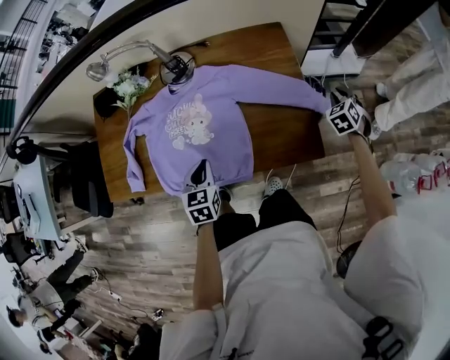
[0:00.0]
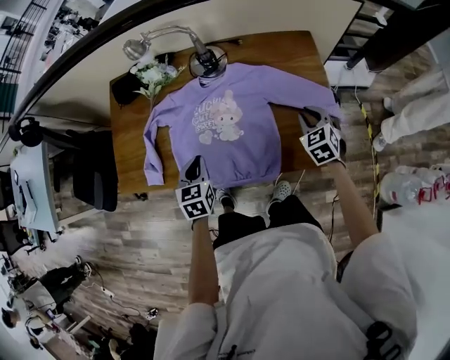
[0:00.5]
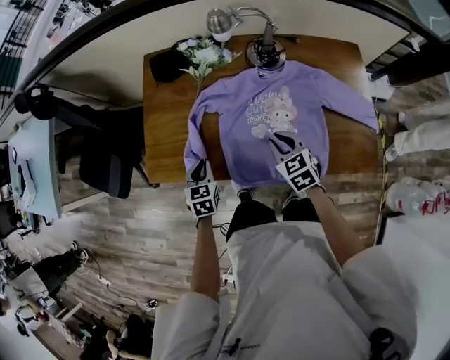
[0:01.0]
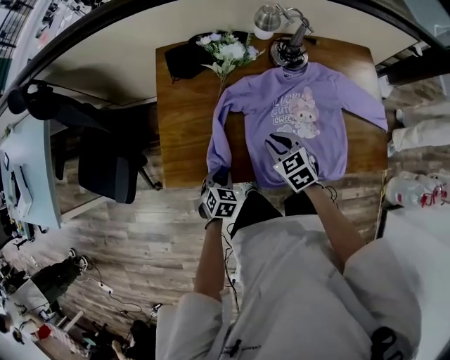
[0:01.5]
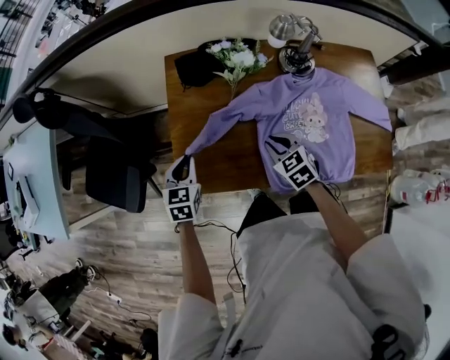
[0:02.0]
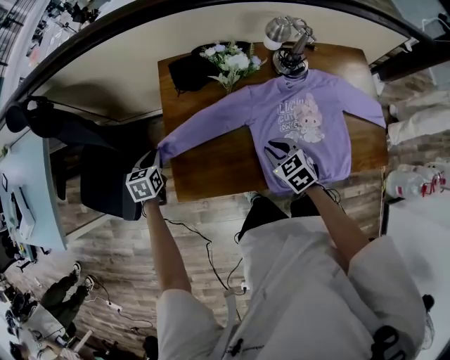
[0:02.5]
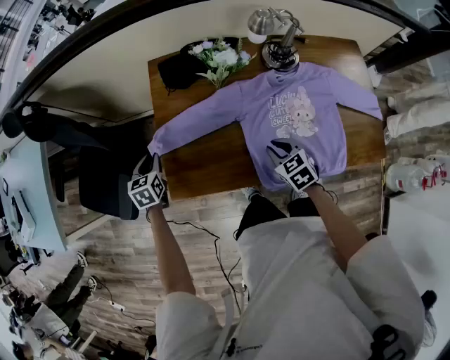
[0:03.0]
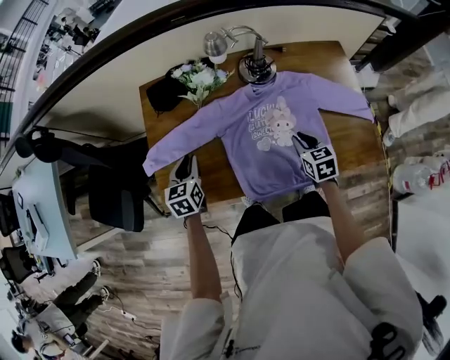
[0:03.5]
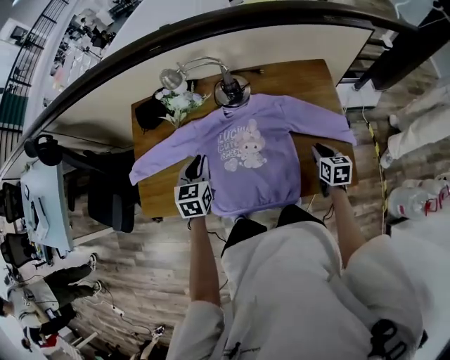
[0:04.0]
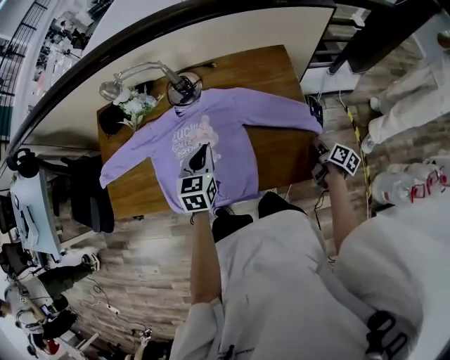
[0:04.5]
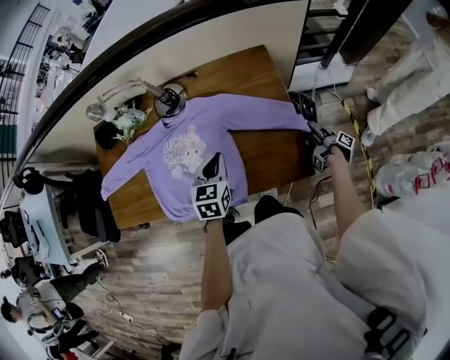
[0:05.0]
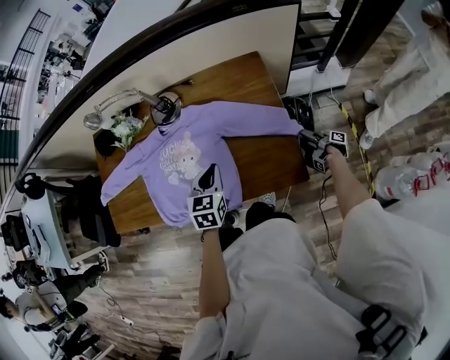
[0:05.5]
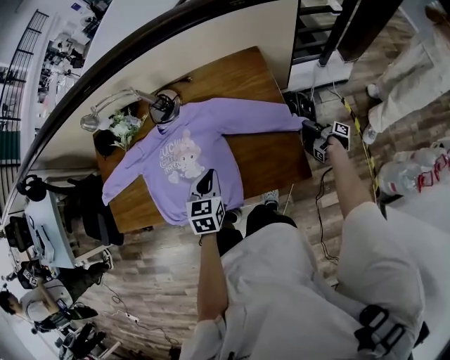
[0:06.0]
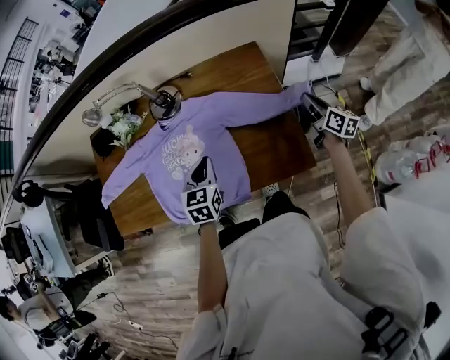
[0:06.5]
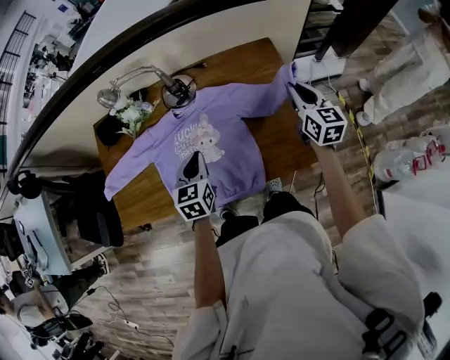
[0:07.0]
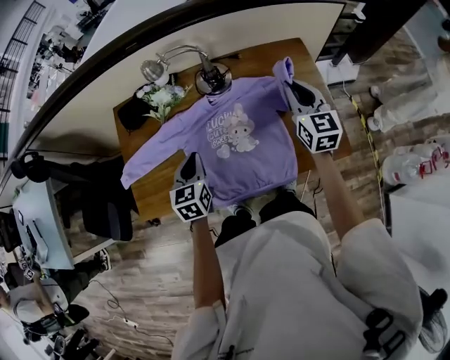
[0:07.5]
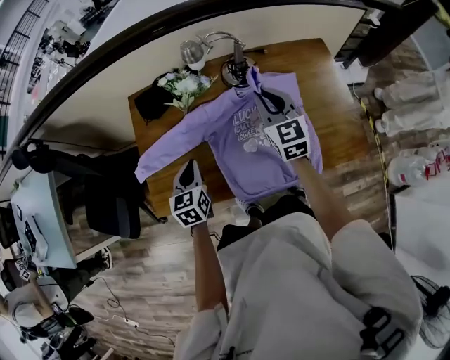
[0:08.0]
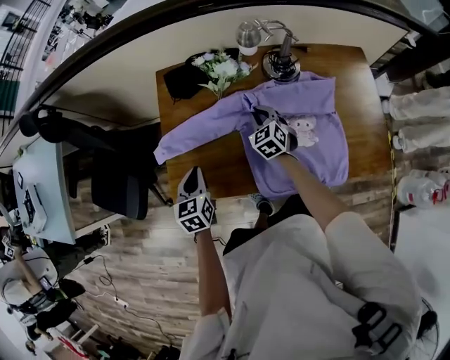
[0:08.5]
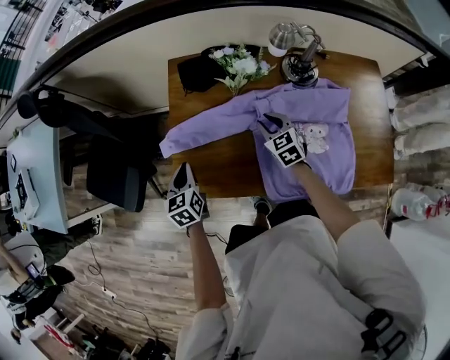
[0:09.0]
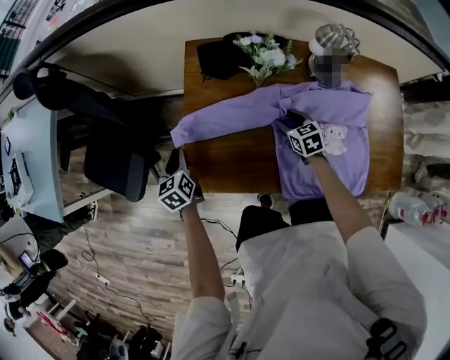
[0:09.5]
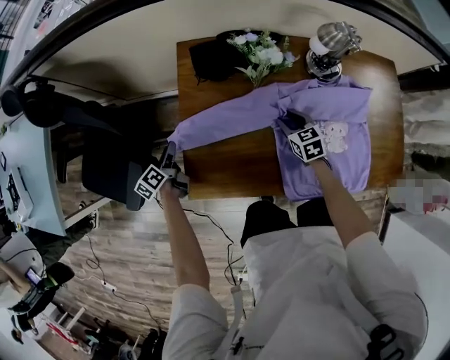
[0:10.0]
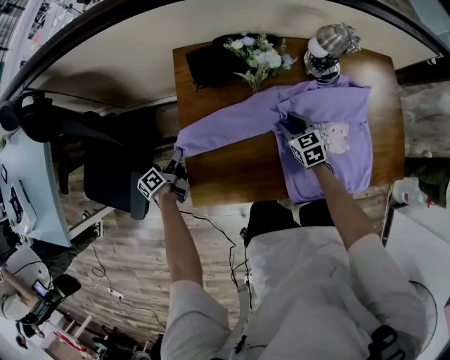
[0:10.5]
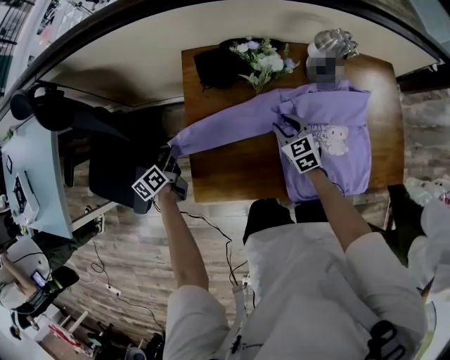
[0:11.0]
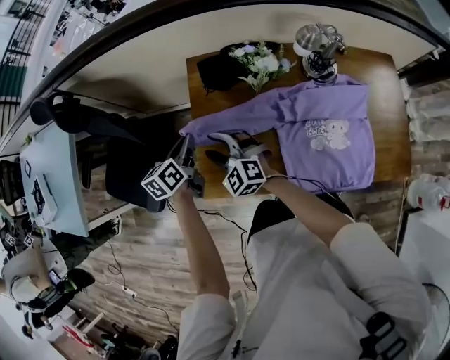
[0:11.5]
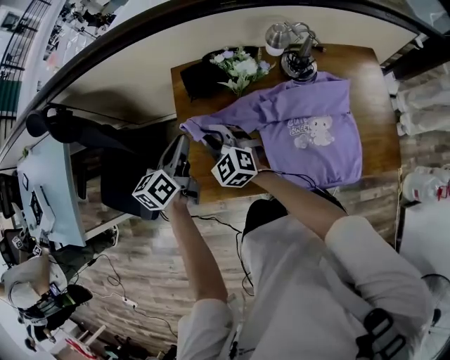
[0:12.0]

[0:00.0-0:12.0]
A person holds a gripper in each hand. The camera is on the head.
0:00.0 to 0:02.0: Both grippers are carried approximately 60 cm. The right gripper turns by roughly 40 degrees.
0:02.0 to 0:04.0: Both grippers move to the right, approximately 40 cm. The right gripper rotates approximately 40 degrees.
0:04.0 to 0:06.0: The right gripper goes about 30 cm to the right and downward, rotates around the line of its fingers by approximately 90 degrees, clockwise from behind, and opens, then closes again, while the left gripper moves to the right, roughly 30 cm.
0:06.0 to 0:08.0: The pair of grippers is taken to the left, some 50 cm. The right gripper heads upward, covering roughly 30 cm, and rotates around the line of its fingers by some 120 degrees, counterclockwise from behind.
0:08.0 to 0:10.0: The left gripper is displaced to the left and downward by some 35 cm, twists about 50 degrees counterclockwise, seen from behind, and opens its fingers. The right gripper is displaced downward and to the left by some 30 cm, angles its fingers downward, by roughly 30 degrees, and opens up.
0:10.0 to 0:12.0: The left gripper travels upward and to the right by about 30 cm, rotates some 30 degrees, and closes its fingers. The right gripper is displaced to the left and upward by roughly 30 cm, swivels approximately 40 degrees, and closes its fingers.

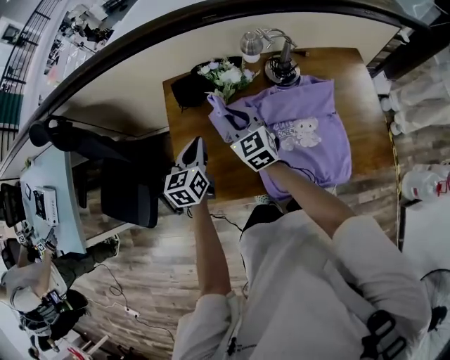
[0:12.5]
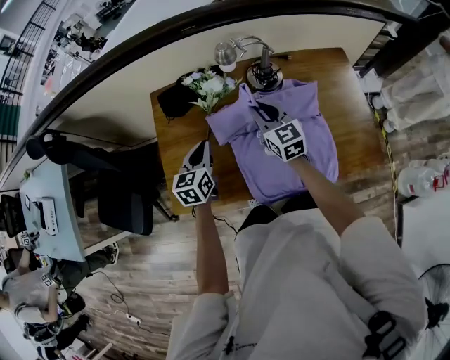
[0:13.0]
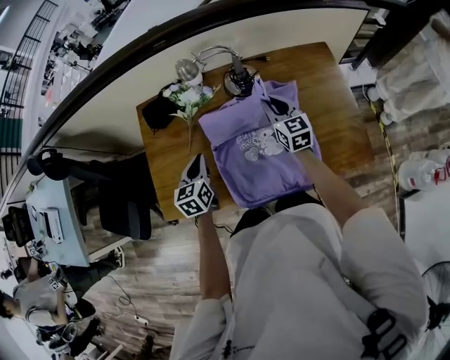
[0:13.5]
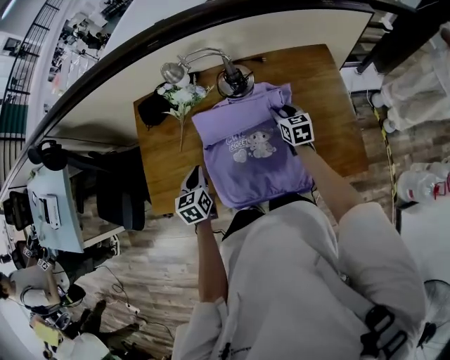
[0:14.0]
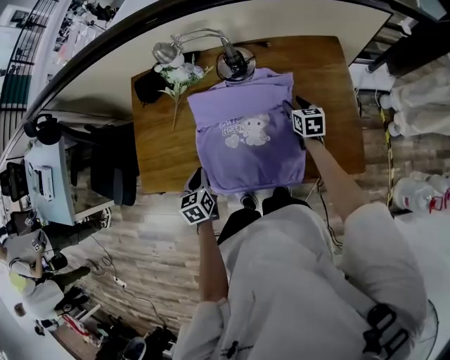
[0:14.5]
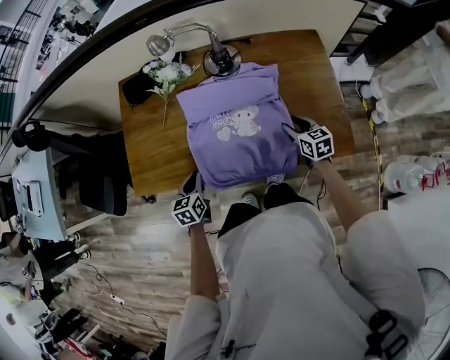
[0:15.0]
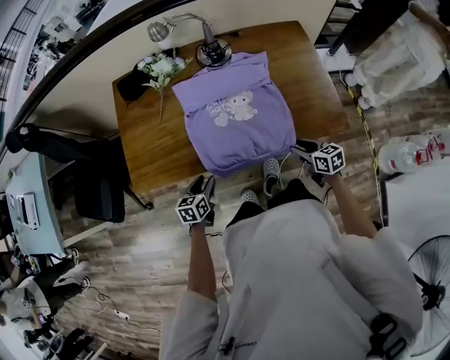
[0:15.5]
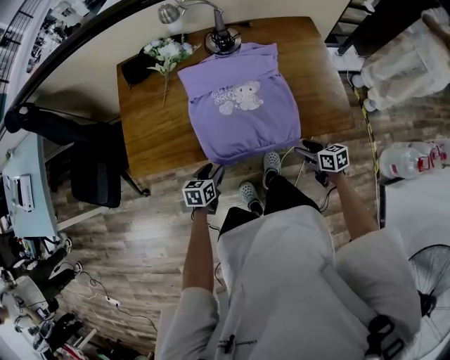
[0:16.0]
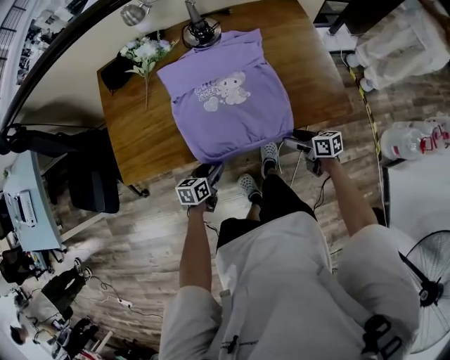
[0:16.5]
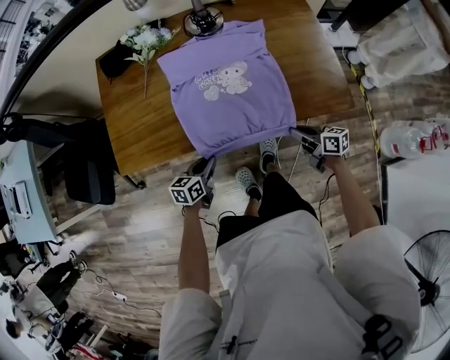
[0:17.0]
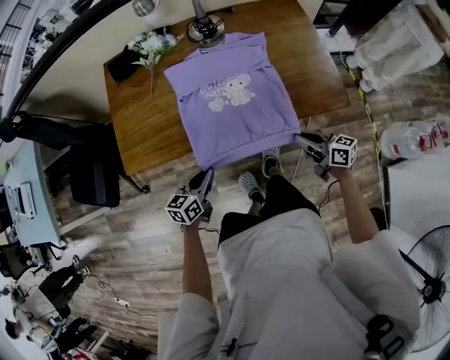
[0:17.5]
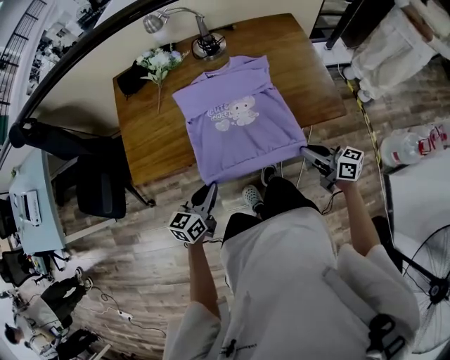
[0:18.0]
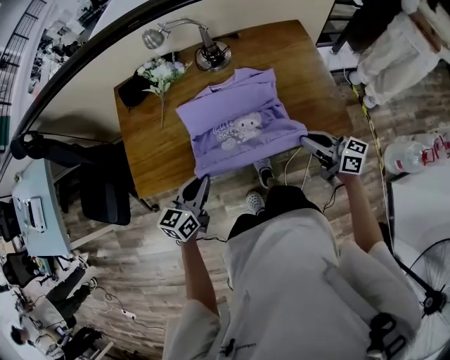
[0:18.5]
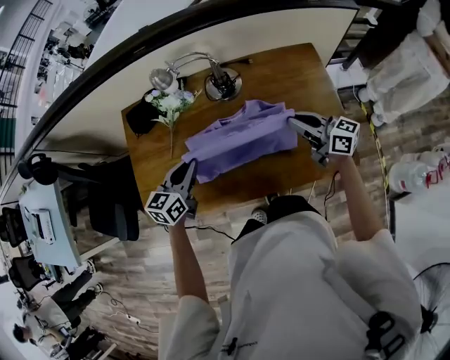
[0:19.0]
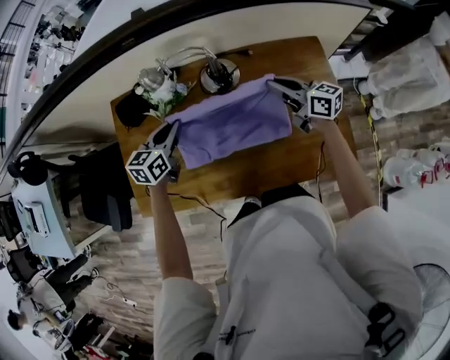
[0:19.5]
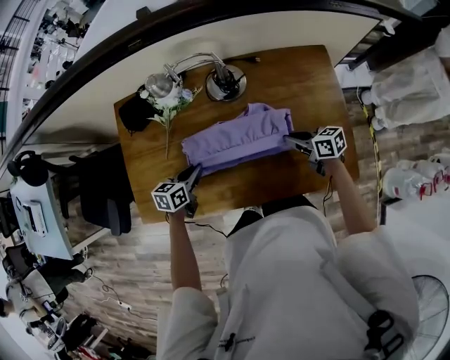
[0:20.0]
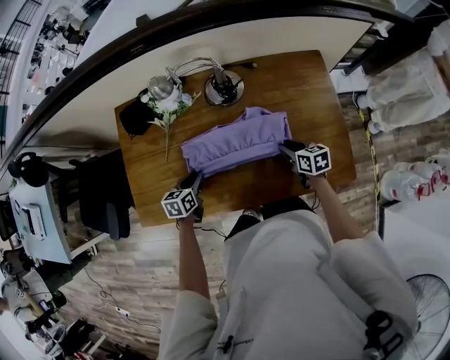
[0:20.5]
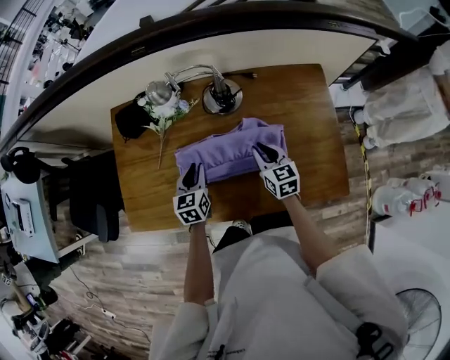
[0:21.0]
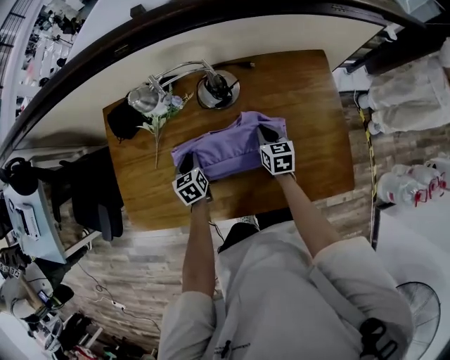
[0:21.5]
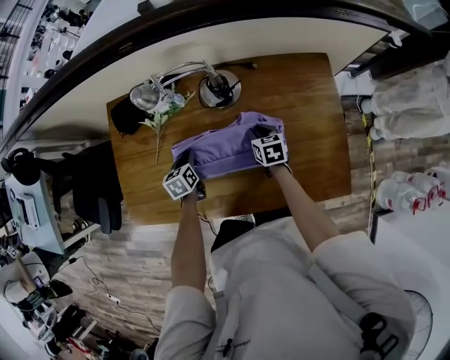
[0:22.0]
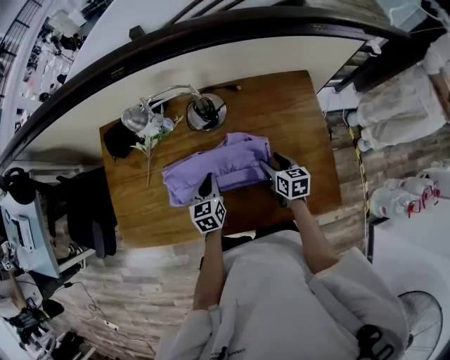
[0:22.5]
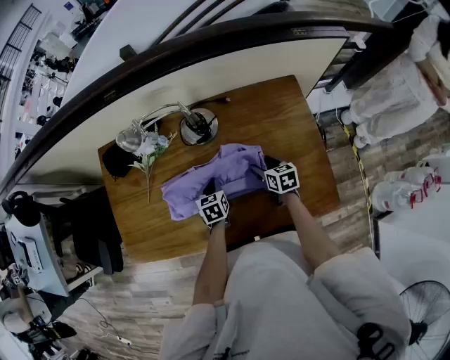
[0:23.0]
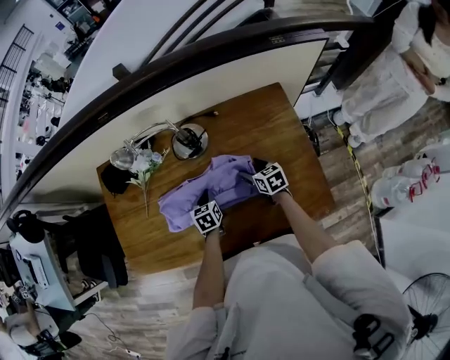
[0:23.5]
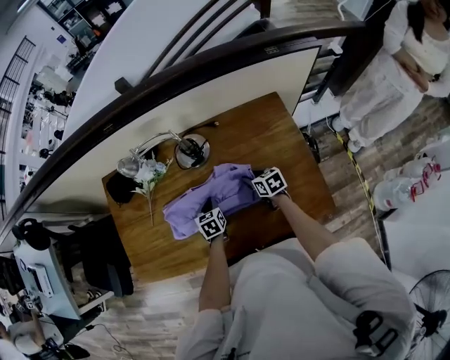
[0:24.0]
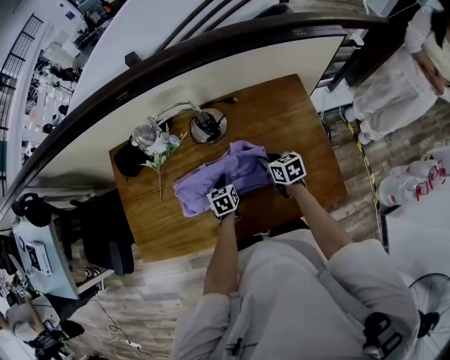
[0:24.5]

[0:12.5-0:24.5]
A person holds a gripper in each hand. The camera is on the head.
0:12.5 to 0:14.5: The left gripper moves to the right, backward and downward, some 25 cm, and changes its angle by about 30 degrees. Meanwhile the right gripper heads to the right, covering roughly 40 cm, turns by approximately 40 degrees, and opens up.
0:14.5 to 0:16.5: The left gripper moves downward and backward, some 20 cm, turns by about 40 degrees, and opens. The right gripper shifts roughly 30 cm backward, and swivels some 30 degrees.
0:16.5 to 0:18.5: The two grippers go roughly 25 cm upward. The left gripper turns by roughly 30 degrees, and closes; the right gripper swivels about 30 degrees, and closes up.
0:18.5 to 0:20.5: The two grippers go about 25 cm forward and downward. The right gripper tilts its fingers roughly 40 degrees downward; the left gripper changes its angle by approximately 30 degrees.
0:20.5 to 0:22.5: The right gripper opens its fingers. Meanwhile the left gripper heads to the right, covering about 15 cm.
0:22.5 to 0:24.5: The right gripper closes. The left gripper shifts some 5 cm downward.

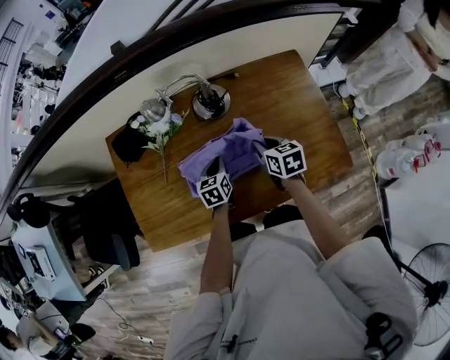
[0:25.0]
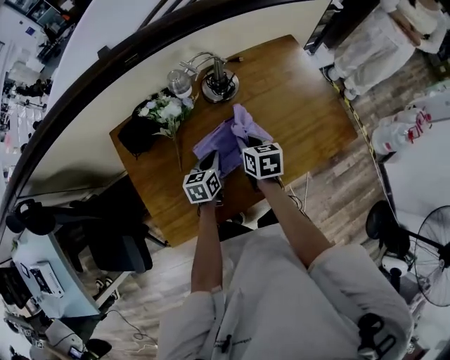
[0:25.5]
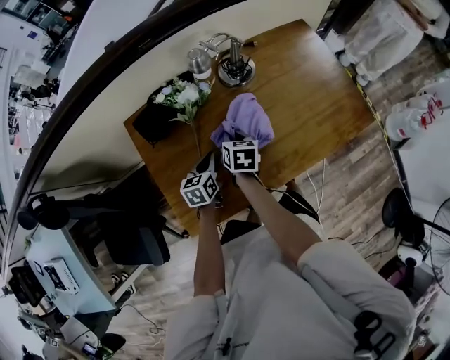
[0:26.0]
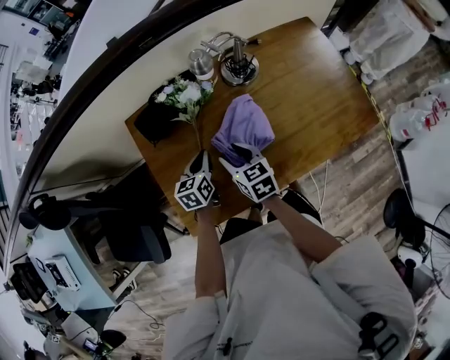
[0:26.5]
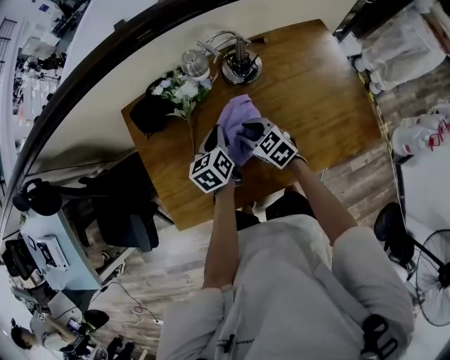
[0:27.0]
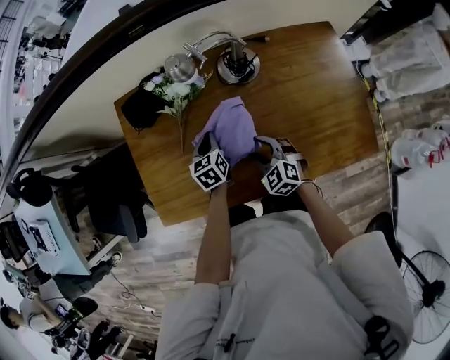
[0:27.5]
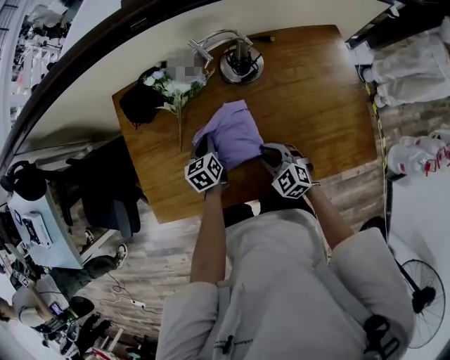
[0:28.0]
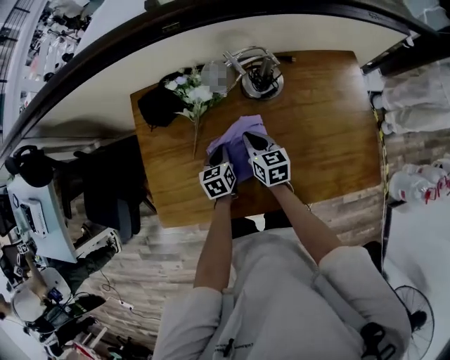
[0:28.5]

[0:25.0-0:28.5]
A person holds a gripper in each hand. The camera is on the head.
0:25.0 to 0:27.0: The right gripper moves about 20 cm, and turns by roughly 30 degrees.
0:27.0 to 0:28.5: The left gripper heads downward, covering about 10 cm. The right gripper moves some 10 cm backward and comes back, rotates approximately 30 degrees, and closes up.
